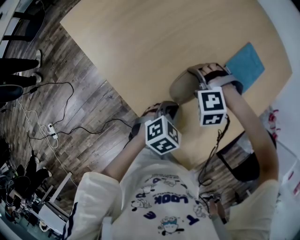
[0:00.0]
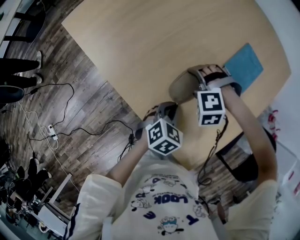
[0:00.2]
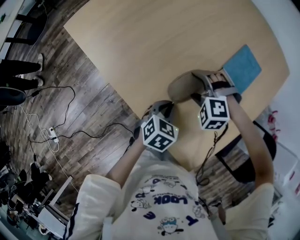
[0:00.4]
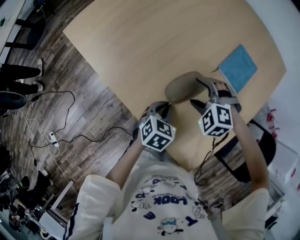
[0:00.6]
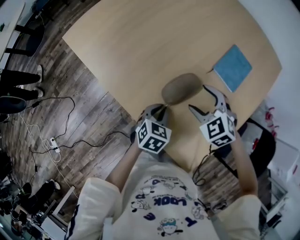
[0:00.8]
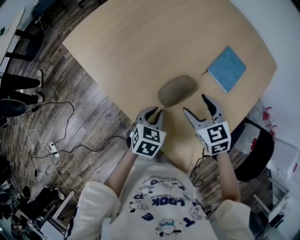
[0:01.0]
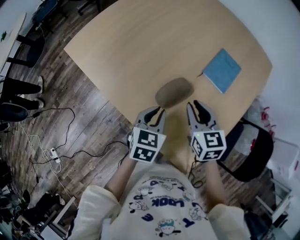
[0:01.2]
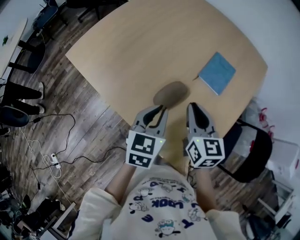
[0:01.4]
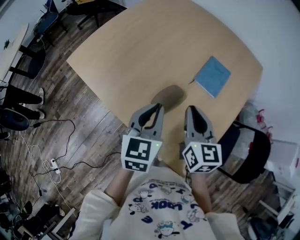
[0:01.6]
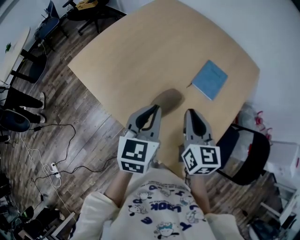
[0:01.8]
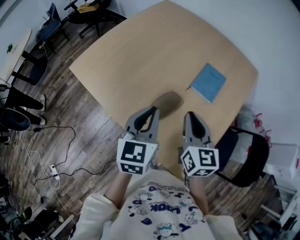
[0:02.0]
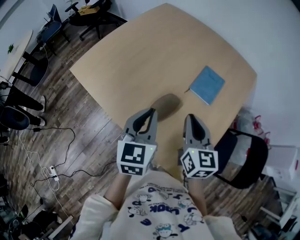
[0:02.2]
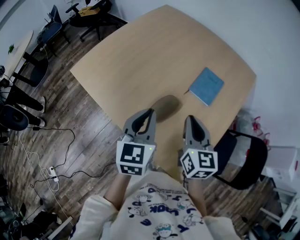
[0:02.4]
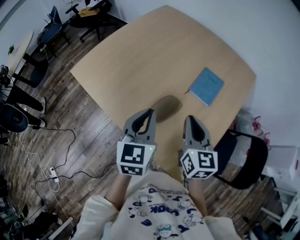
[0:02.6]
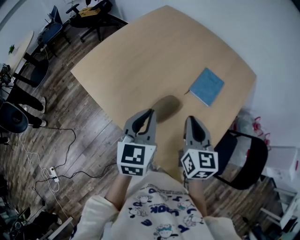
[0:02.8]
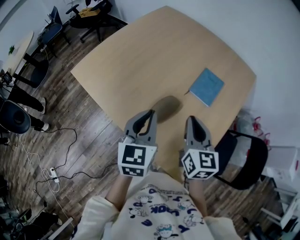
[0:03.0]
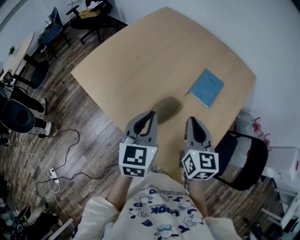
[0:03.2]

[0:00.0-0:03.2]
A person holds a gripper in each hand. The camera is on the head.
0.0 to 1.6 s: Both grippers travel together upward, roughly 15 cm. The left gripper points its fingers some 30 degrees further upward. The right gripper twists about 100 degrees clockwise, seen from behind, and closes its fingers.
1.6 to 3.2 s: The grippers make only small movements.

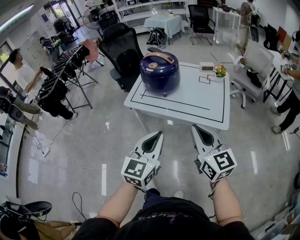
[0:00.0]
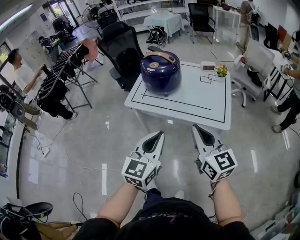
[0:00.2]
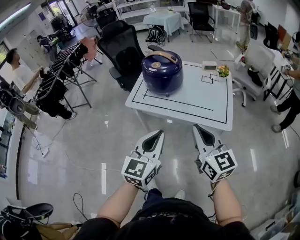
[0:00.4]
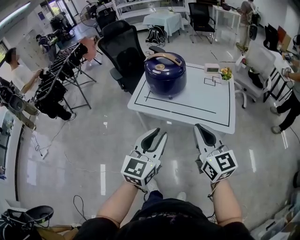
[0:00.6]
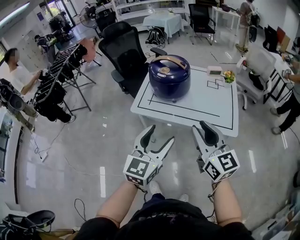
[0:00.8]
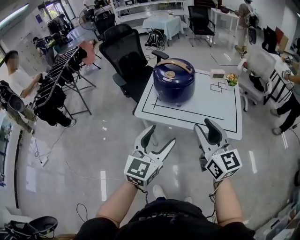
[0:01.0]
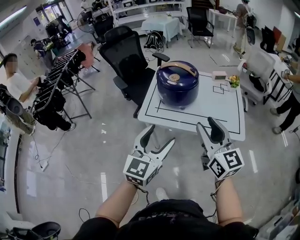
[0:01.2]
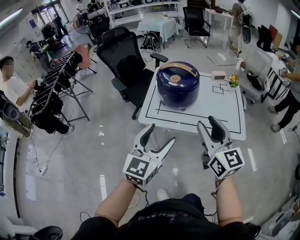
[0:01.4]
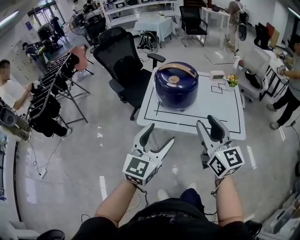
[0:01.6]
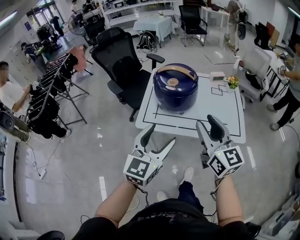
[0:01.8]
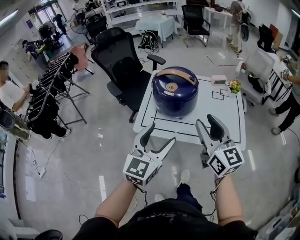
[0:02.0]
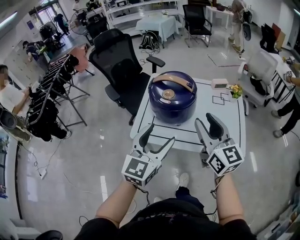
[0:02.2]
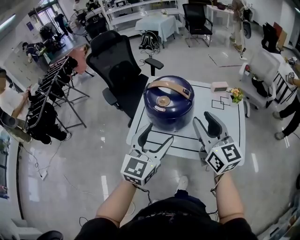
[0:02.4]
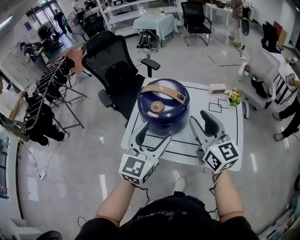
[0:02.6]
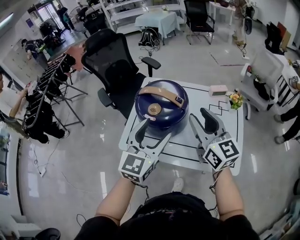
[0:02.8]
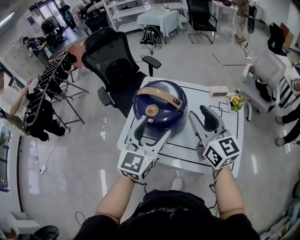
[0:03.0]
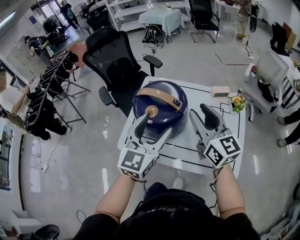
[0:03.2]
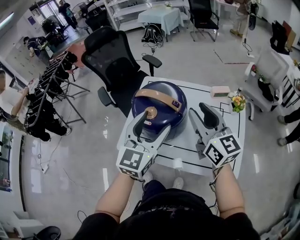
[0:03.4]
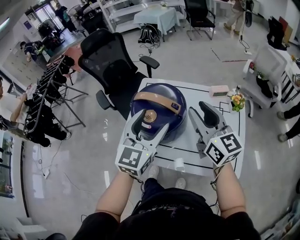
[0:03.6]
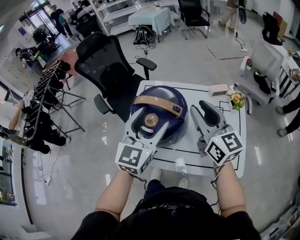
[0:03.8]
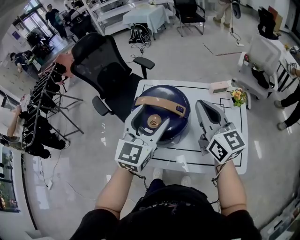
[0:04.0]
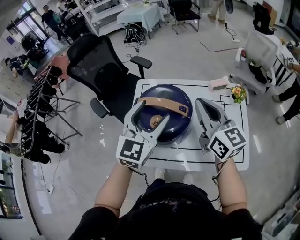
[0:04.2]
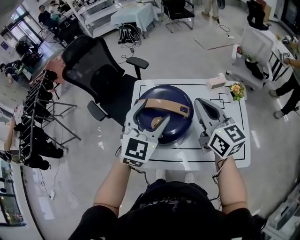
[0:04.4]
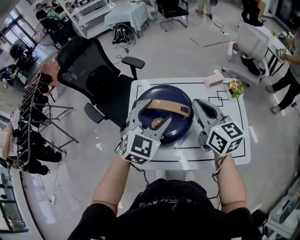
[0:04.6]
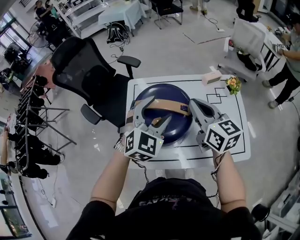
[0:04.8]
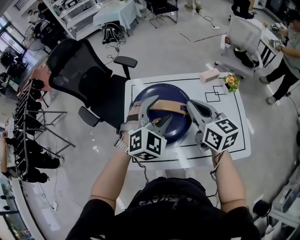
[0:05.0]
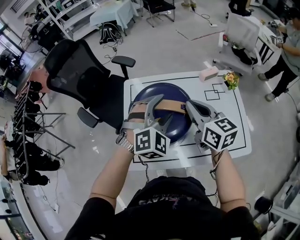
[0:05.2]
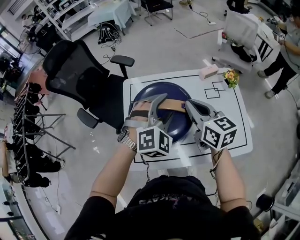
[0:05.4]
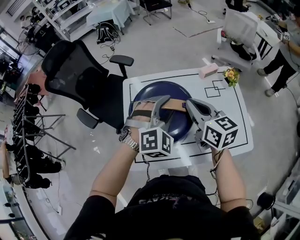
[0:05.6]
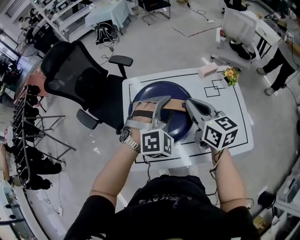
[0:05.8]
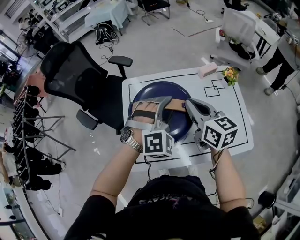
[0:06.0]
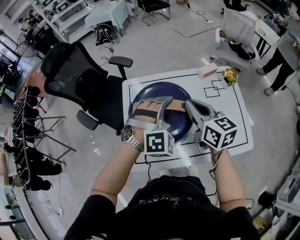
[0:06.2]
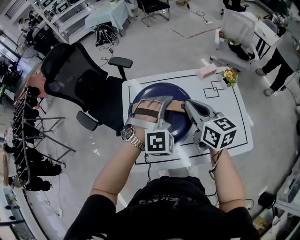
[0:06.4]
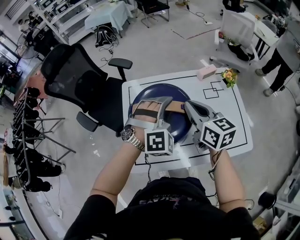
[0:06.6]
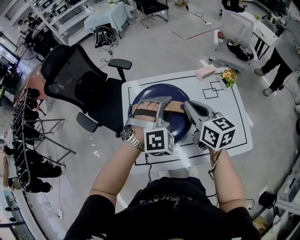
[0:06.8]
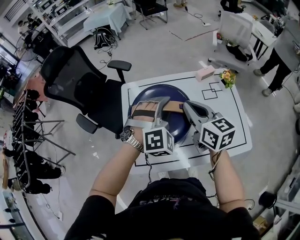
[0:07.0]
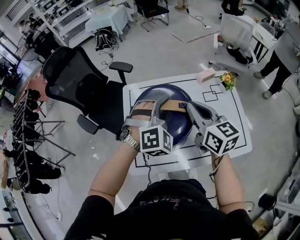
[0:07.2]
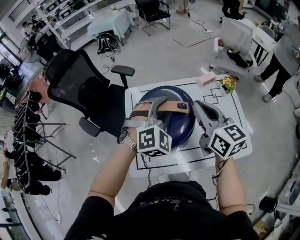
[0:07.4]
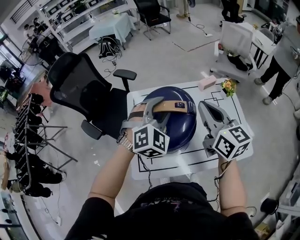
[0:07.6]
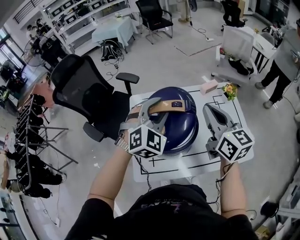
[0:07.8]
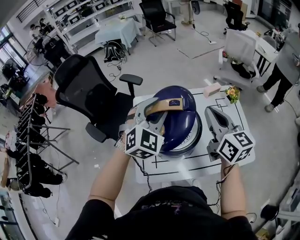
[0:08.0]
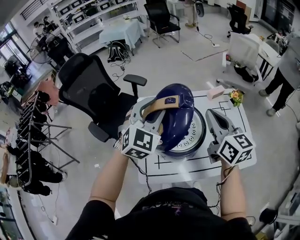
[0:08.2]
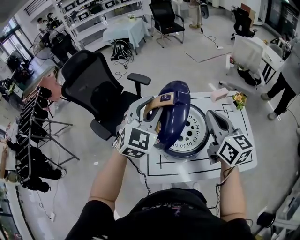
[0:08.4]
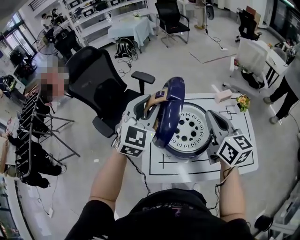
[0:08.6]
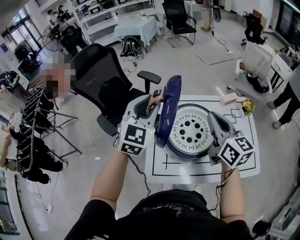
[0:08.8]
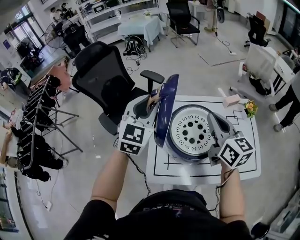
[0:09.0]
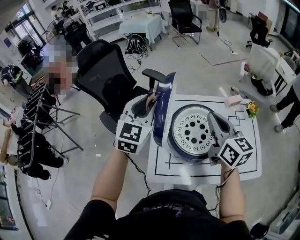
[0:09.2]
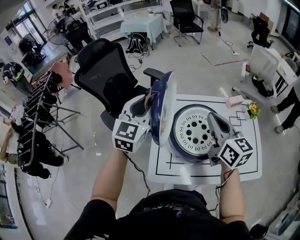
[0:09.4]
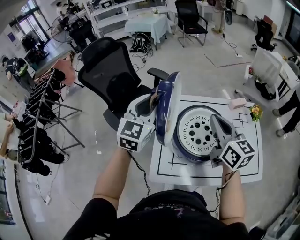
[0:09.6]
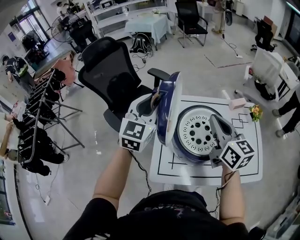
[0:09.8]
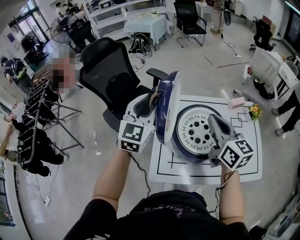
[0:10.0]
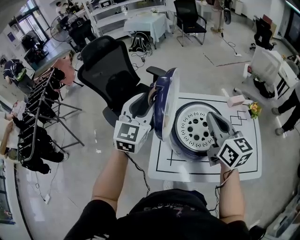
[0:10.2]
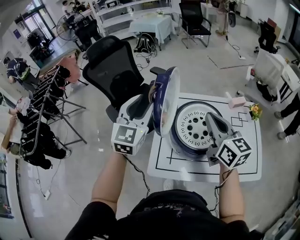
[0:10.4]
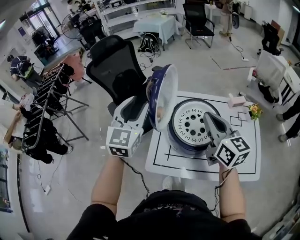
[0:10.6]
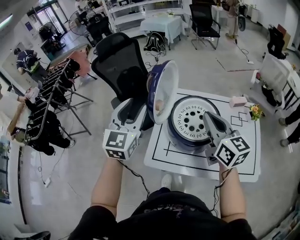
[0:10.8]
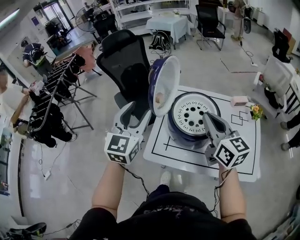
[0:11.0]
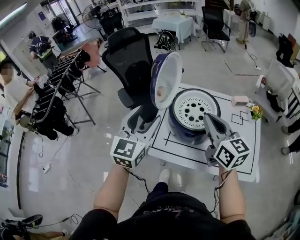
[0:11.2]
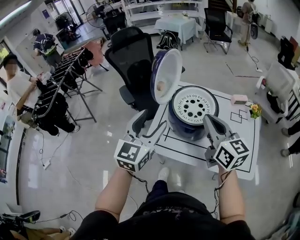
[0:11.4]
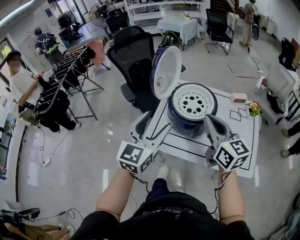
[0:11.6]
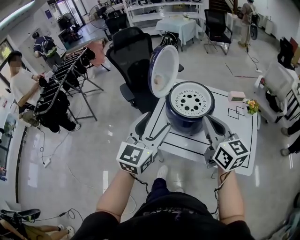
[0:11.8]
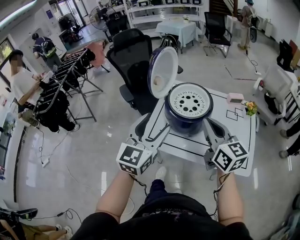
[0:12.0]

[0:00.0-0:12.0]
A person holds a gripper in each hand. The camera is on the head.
0.0 to 1.6 s: The two grippers go roughly 20 cm to the left and forward. The left gripper opens up. Meanwhile the right gripper opens.
1.6 to 3.0 s: The right gripper goes some 30 cm forward. Meanwhile the left gripper shifts roughly 30 cm forward and to the right.
3.0 to 4.4 s: Both grippers move forward, approximately 10 cm. The right gripper closes up. Meanwhile the left gripper rotates roughly 20 degrees.
4.4 to 6.0 s: The grippers both shift downward by about 5 cm. The left gripper rolls clockwise, seen from behind, by some 50 degrees, and closes its fingers.
6.0 to 7.6 s: The left gripper heads upward, covering approximately 5 cm. Meanwhile the right gripper goes about 10 cm upward.
7.6 to 9.0 s: The right gripper moves to the left, roughly 10 cm; the left gripper heads to the left, covering approximately 20 cm, and swivels about 40 degrees.
9.0 to 10.4 s: The left gripper travels to the left by roughly 5 cm.
10.4 to 12.0 s: The two grippers go some 25 cm backward. The left gripper opens.

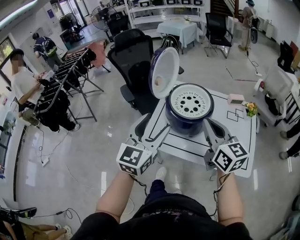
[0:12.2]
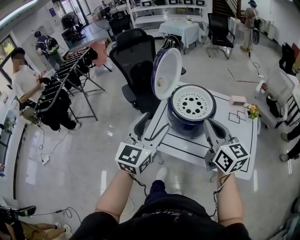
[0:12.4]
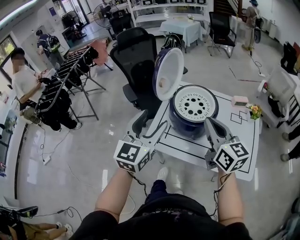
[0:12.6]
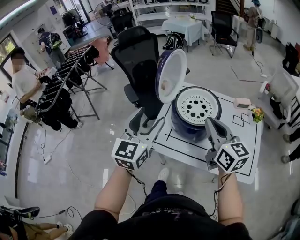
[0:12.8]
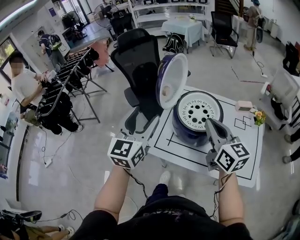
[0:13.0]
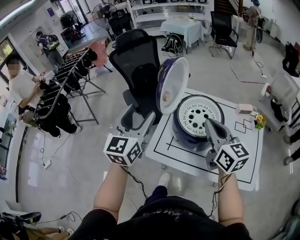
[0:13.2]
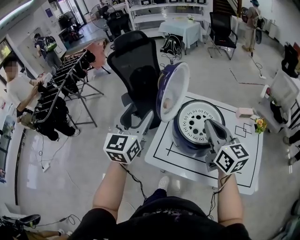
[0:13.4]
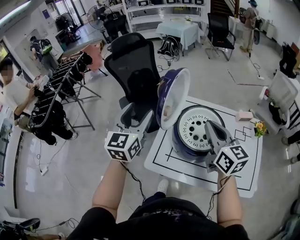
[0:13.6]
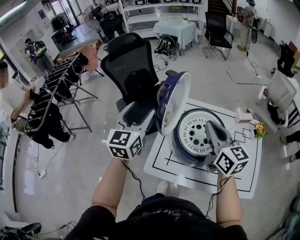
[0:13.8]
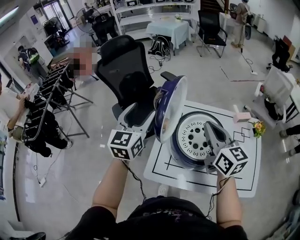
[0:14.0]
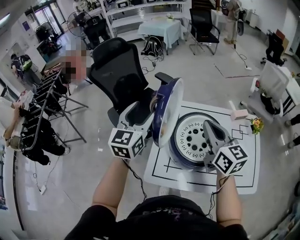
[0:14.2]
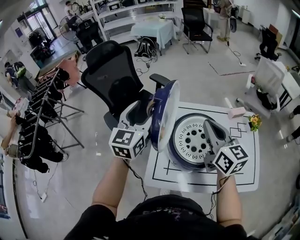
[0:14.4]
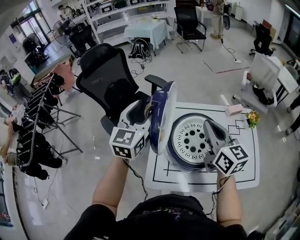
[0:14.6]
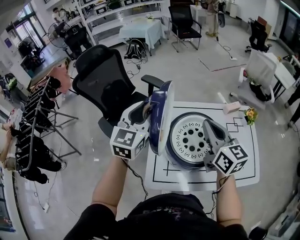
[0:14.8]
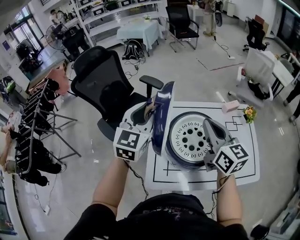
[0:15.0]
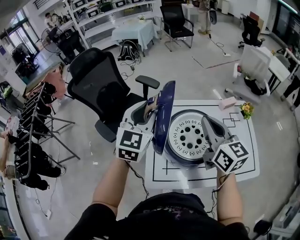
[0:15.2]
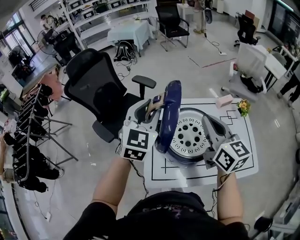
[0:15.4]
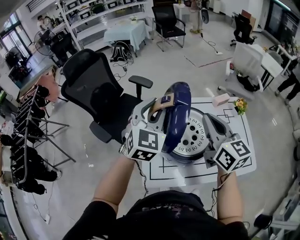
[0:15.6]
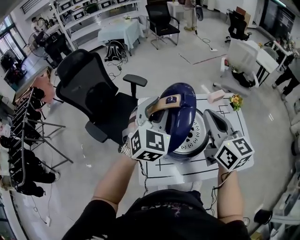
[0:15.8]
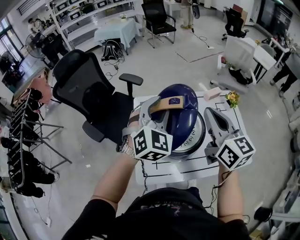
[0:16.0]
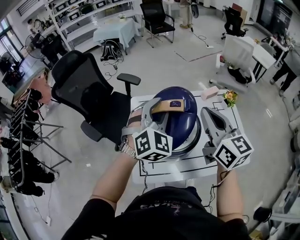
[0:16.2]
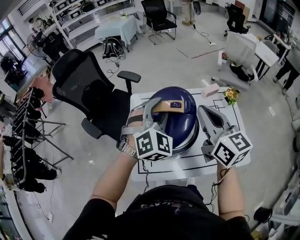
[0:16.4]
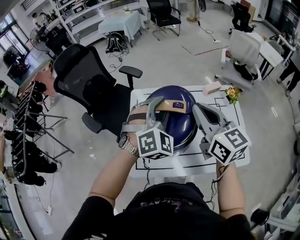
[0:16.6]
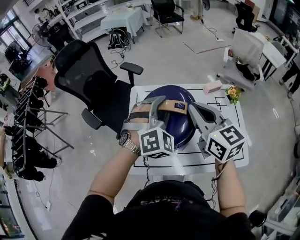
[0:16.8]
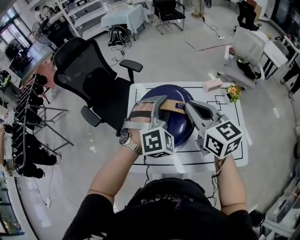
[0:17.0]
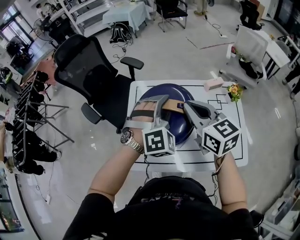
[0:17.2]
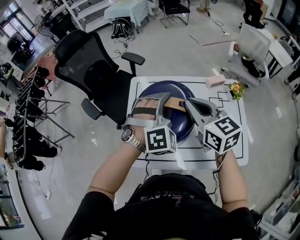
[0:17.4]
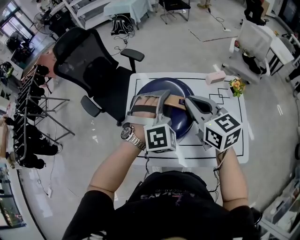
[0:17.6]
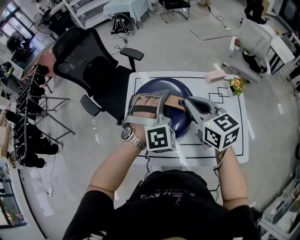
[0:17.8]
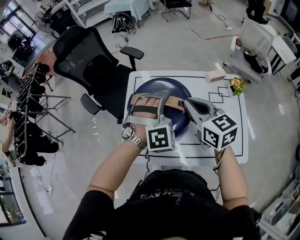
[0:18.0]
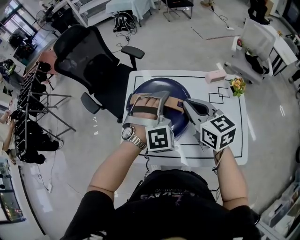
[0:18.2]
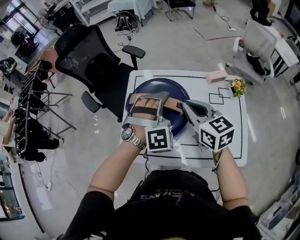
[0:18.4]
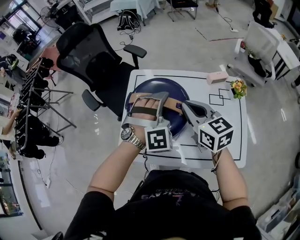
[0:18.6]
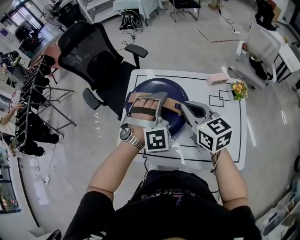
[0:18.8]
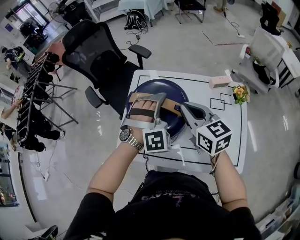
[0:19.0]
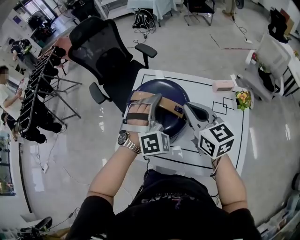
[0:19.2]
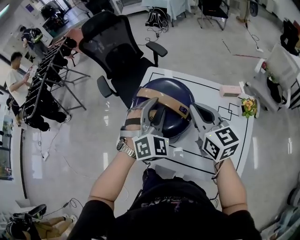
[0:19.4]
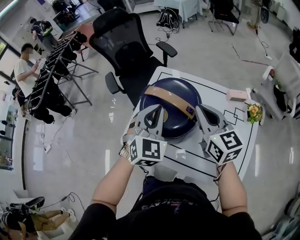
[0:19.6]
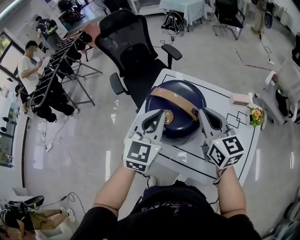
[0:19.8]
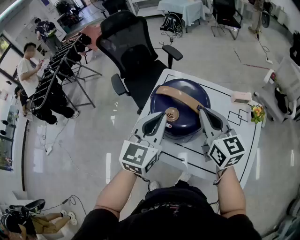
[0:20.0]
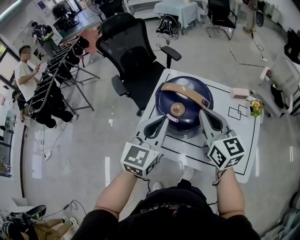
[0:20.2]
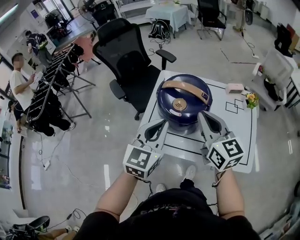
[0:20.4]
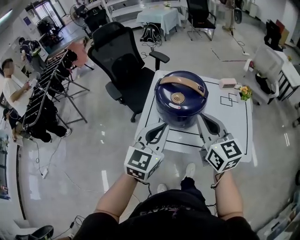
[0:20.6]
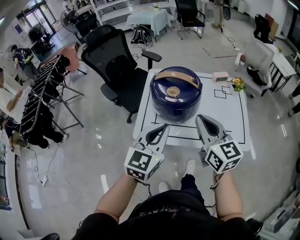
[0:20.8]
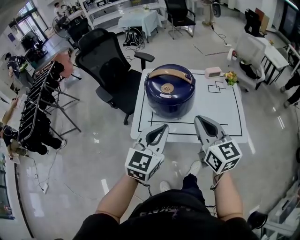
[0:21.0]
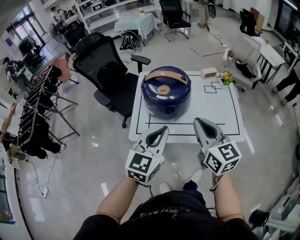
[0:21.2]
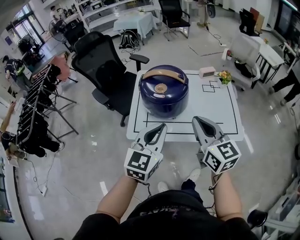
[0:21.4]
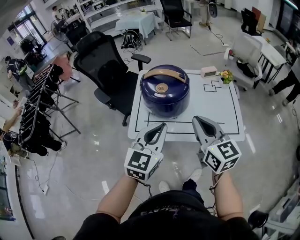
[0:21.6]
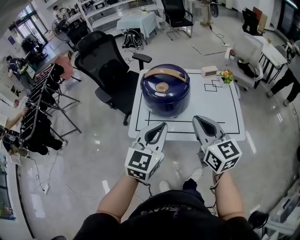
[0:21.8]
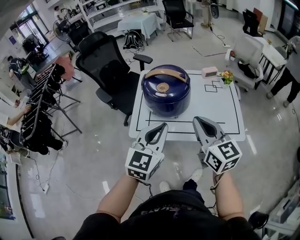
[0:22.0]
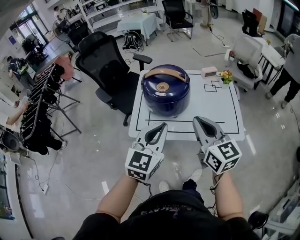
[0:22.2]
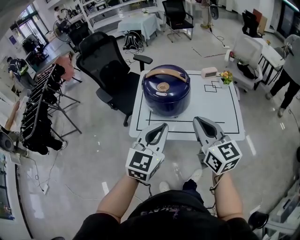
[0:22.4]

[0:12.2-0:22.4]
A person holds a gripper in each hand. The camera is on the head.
12.2 to 13.6 s: The left gripper moves forward and to the left, about 25 cm, while the right gripper shifts approximately 15 cm forward.
13.6 to 15.2 s: The left gripper heads forward and to the right, covering about 15 cm, rotates approximately 30 degrees, and closes. The right gripper moves forward, approximately 5 cm.
15.2 to 16.6 s: The left gripper moves to the right, roughly 15 cm, and twists approximately 40 degrees clockwise, seen from behind; the right gripper moves to the right, roughly 5 cm.
16.6 to 18.0 s: The left gripper moves downward and to the right, about 10 cm; the right gripper is displaced downward by about 10 cm.
18.0 to 19.4 s: The left gripper rotates roughly 30 degrees.
19.4 to 21.0 s: The right gripper ends up roughly 30 cm from where it was, while the left gripper shifts by about 30 cm, swivels approximately 60 degrees, and closes up.
21.0 to 22.4 s: The grippers make only small movements.
